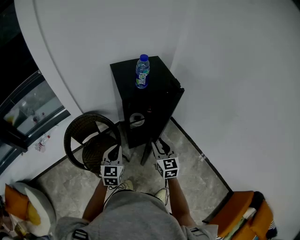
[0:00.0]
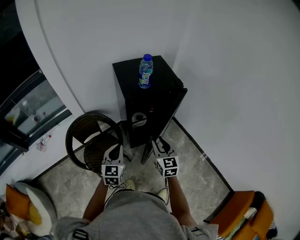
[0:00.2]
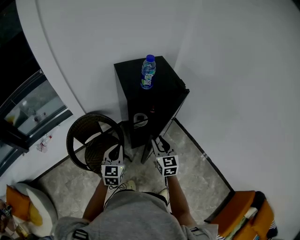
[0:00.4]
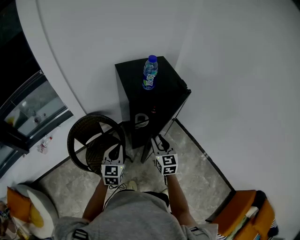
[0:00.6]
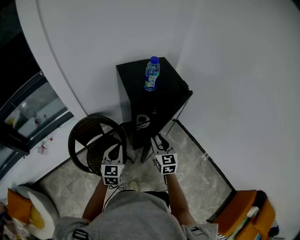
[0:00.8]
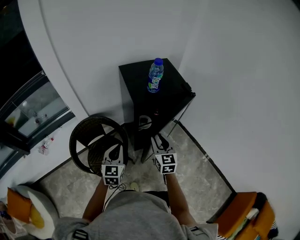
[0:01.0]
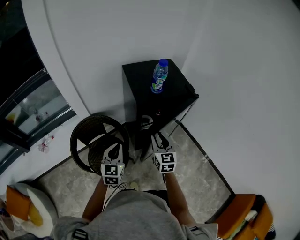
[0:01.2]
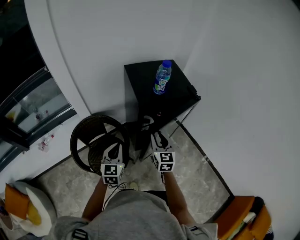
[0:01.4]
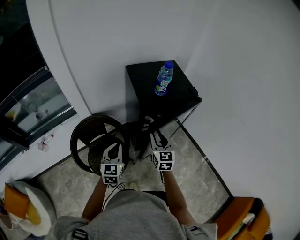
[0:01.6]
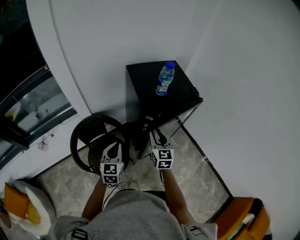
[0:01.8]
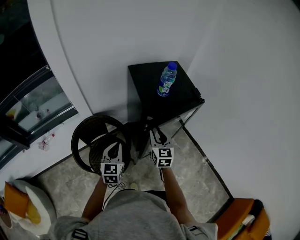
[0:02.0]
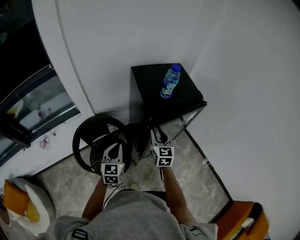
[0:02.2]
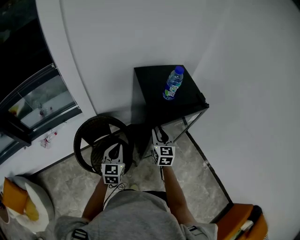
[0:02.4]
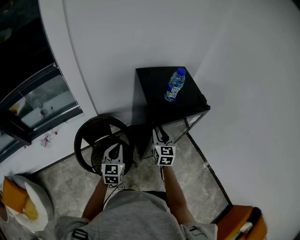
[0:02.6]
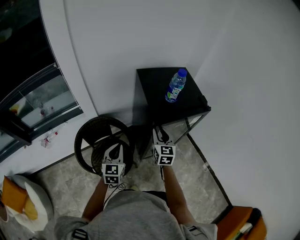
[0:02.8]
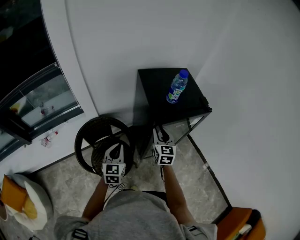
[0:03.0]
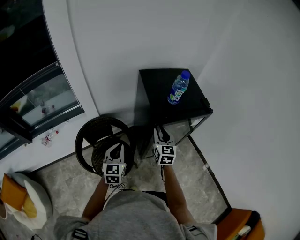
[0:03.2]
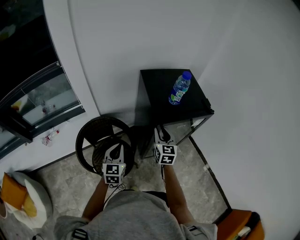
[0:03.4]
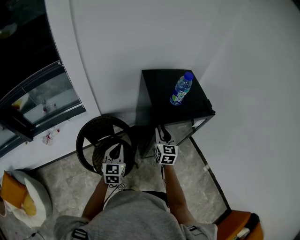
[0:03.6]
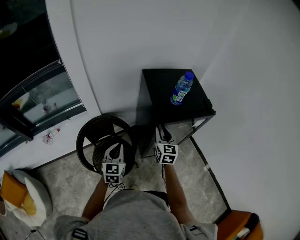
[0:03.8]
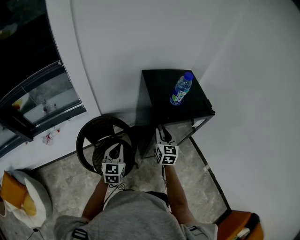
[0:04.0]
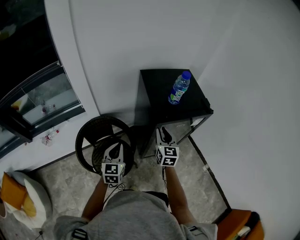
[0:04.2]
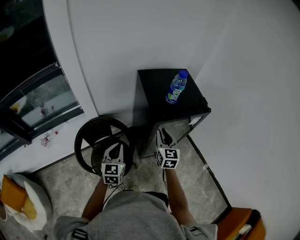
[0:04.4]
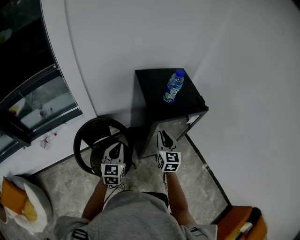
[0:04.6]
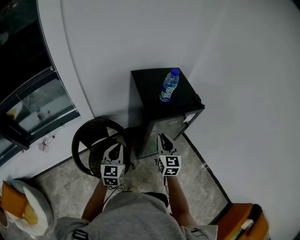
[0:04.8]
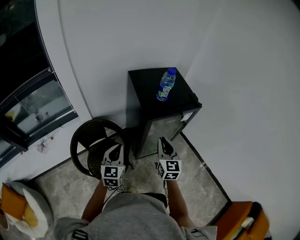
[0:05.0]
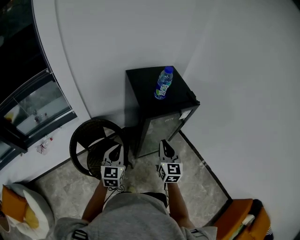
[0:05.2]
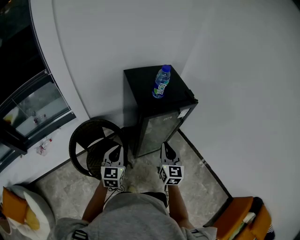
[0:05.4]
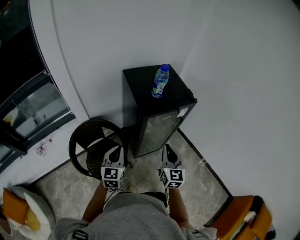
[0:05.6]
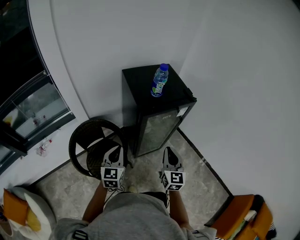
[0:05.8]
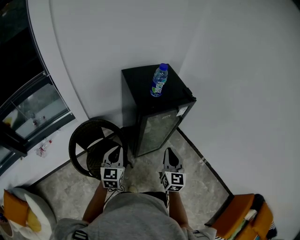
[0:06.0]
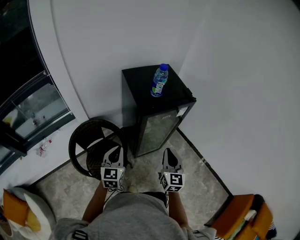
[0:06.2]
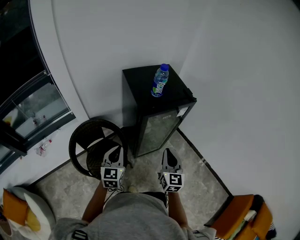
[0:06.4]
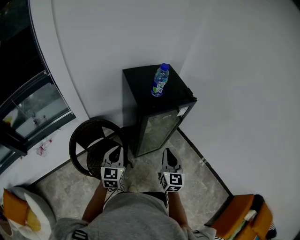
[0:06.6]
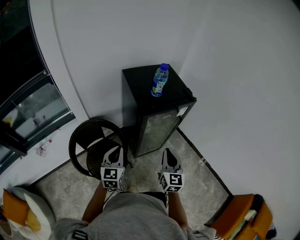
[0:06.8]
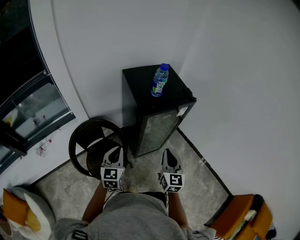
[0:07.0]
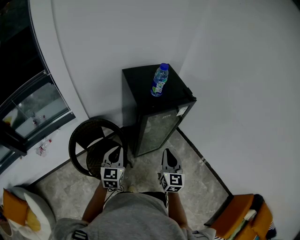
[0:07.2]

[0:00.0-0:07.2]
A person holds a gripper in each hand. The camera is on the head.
0:00.0 to 0:01.4: The grippers both shift to the left and forward by roughly 10 cm.
0:01.4 to 0:02.8: The right gripper travels forward by roughly 5 cm.
0:02.8 to 0:04.4: The grippers move only a little.
0:04.4 to 0:05.8: The right gripper heads backward and to the right, covering about 15 cm, while the left gripper shifts by about 5 cm.
0:05.8 to 0:07.2: Both grippers stay put.

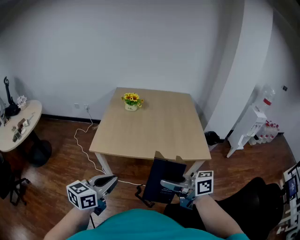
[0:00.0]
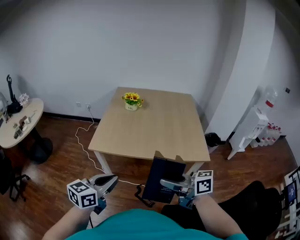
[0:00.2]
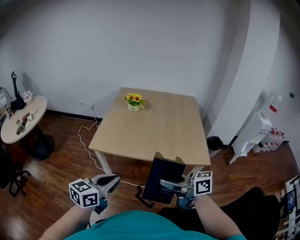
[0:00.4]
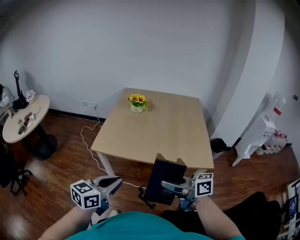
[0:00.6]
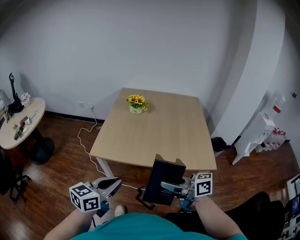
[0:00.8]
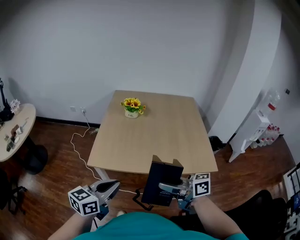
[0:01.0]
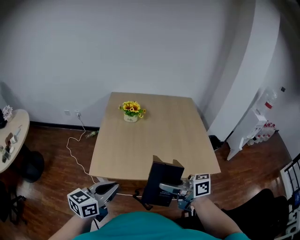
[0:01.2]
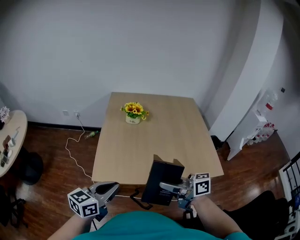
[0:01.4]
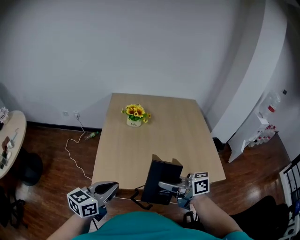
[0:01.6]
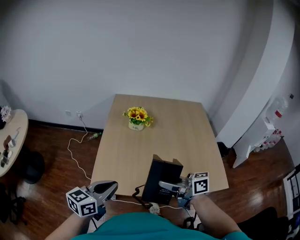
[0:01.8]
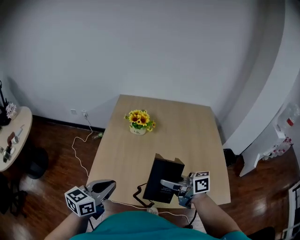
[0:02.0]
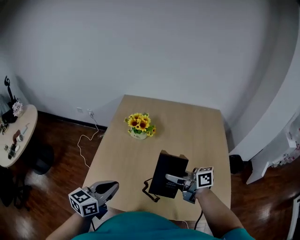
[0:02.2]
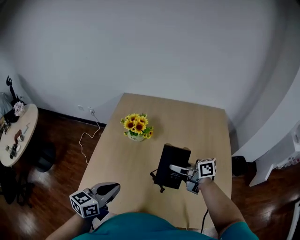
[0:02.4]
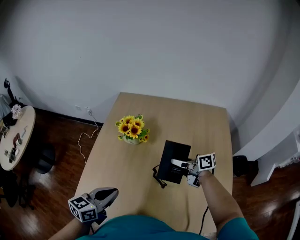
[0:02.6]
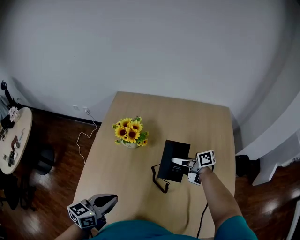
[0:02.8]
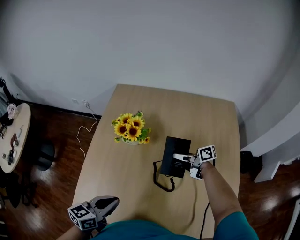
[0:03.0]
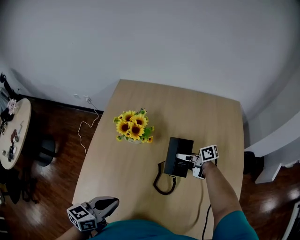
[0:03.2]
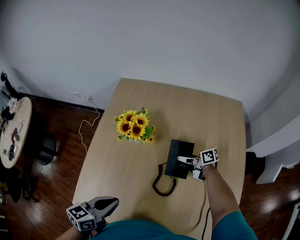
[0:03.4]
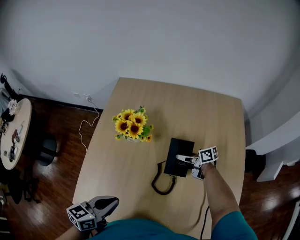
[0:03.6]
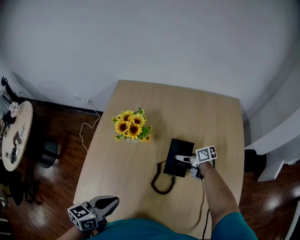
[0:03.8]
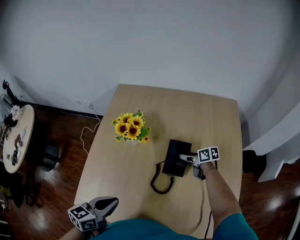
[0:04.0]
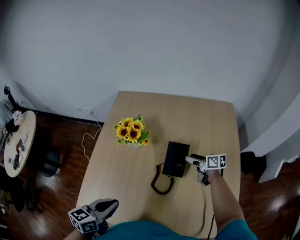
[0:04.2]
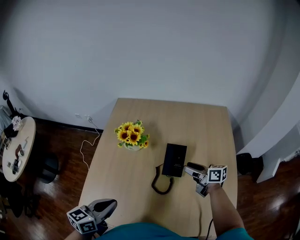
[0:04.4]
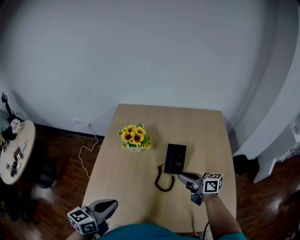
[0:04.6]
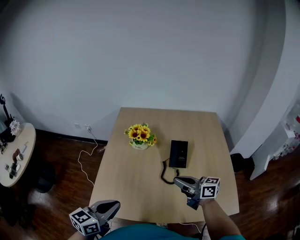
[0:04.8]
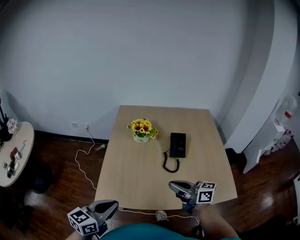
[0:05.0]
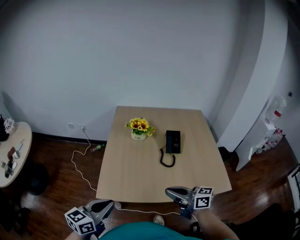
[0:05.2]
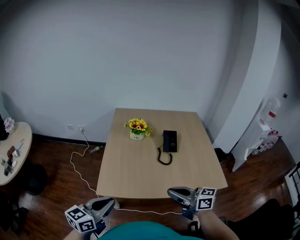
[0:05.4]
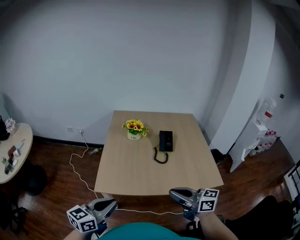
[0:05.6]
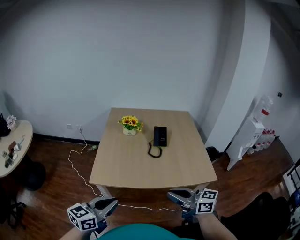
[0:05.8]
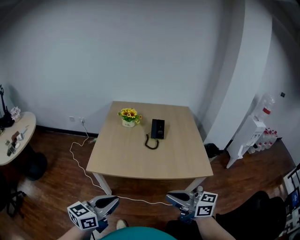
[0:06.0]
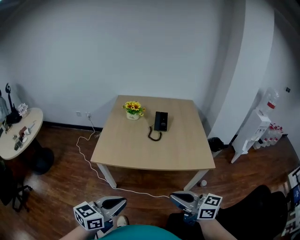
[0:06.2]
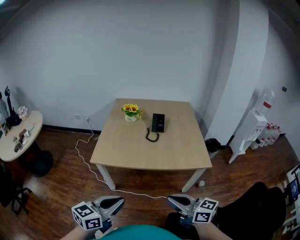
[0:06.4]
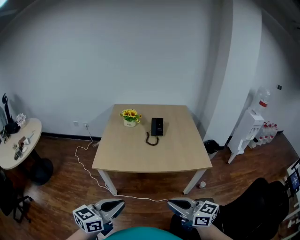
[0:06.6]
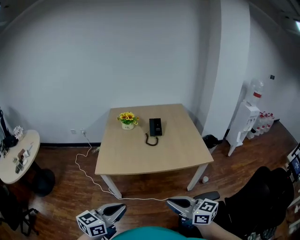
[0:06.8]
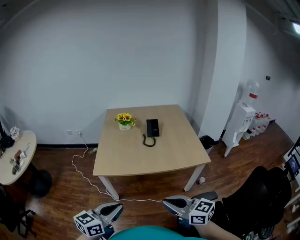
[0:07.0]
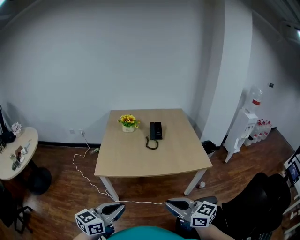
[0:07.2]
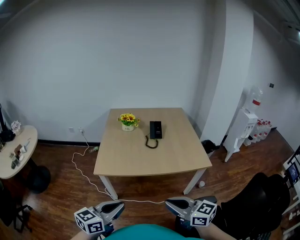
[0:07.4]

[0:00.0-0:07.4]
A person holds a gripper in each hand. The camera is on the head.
0:00.0 to 0:01.4: Both grippers travel together forward, some 20 cm.
0:01.4 to 0:03.0: The left gripper goes some 30 cm forward, to the right and downward, and turns by about 20 degrees. The right gripper heads forward, to the right and downward, covering some 60 cm, and swivels some 30 degrees.
0:03.0 to 0:04.4: The right gripper is displaced backward and to the right by roughly 10 cm, and changes its angle by some 20 degrees.
0:04.4 to 0:06.0: The right gripper heads backward, covering roughly 60 cm, changes its angle by about 30 degrees, and closes its fingers. The left gripper goes about 35 cm backward, and swivels approximately 20 degrees.
0:06.0 to 0:07.4: The left gripper travels backward by approximately 5 cm. The right gripper travels backward and to the left by roughly 10 cm.

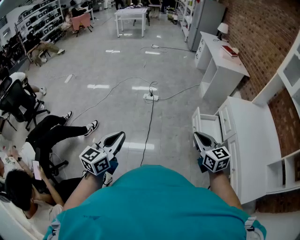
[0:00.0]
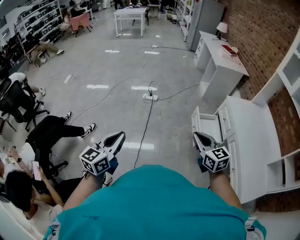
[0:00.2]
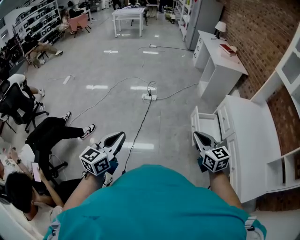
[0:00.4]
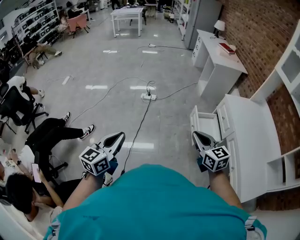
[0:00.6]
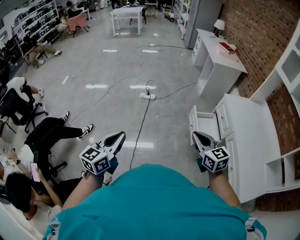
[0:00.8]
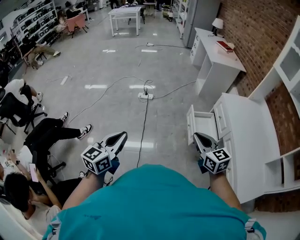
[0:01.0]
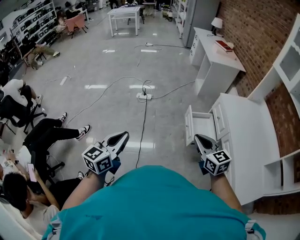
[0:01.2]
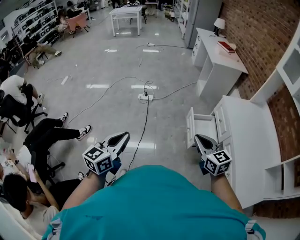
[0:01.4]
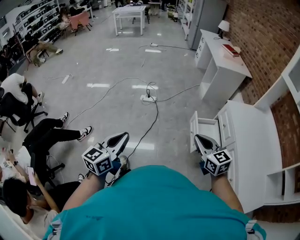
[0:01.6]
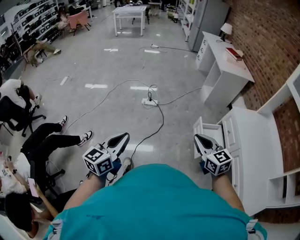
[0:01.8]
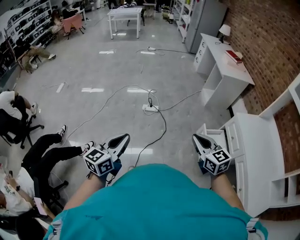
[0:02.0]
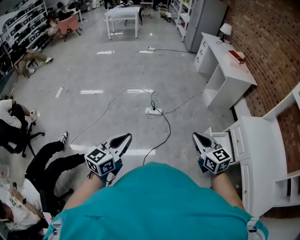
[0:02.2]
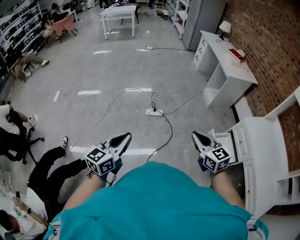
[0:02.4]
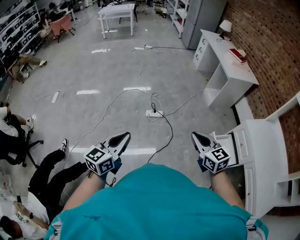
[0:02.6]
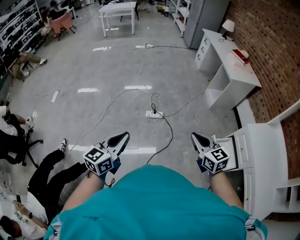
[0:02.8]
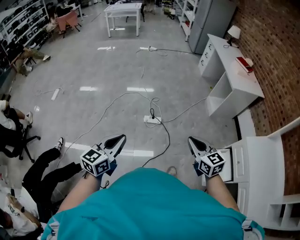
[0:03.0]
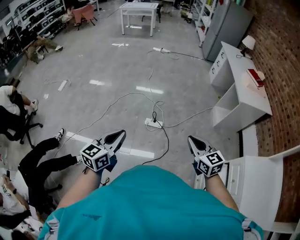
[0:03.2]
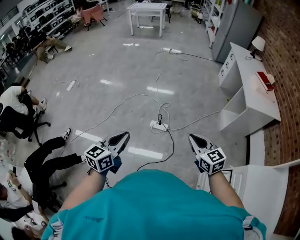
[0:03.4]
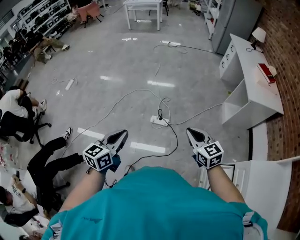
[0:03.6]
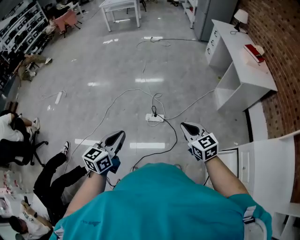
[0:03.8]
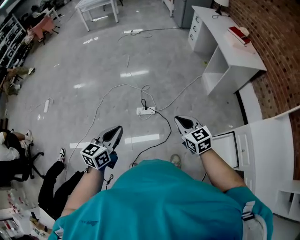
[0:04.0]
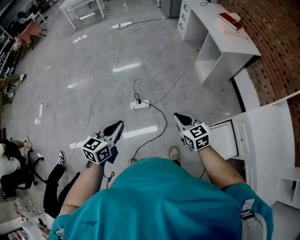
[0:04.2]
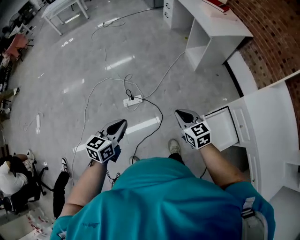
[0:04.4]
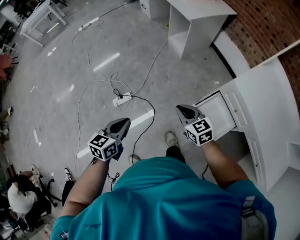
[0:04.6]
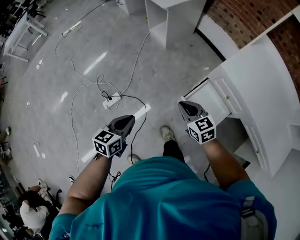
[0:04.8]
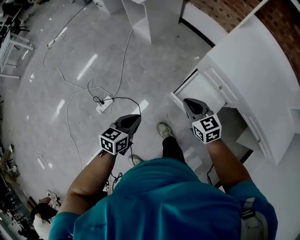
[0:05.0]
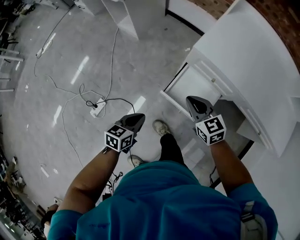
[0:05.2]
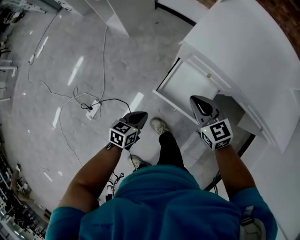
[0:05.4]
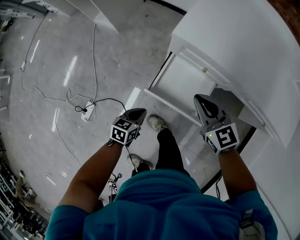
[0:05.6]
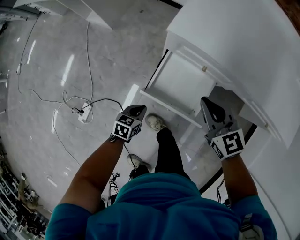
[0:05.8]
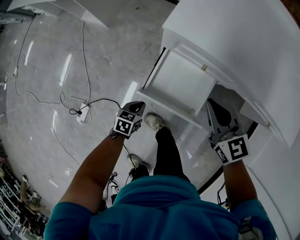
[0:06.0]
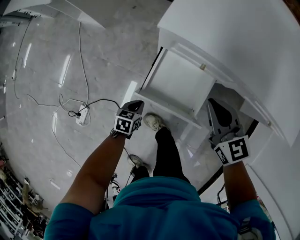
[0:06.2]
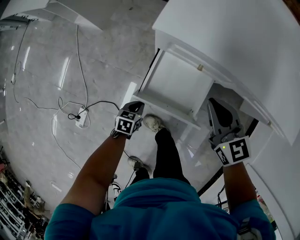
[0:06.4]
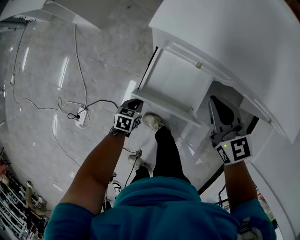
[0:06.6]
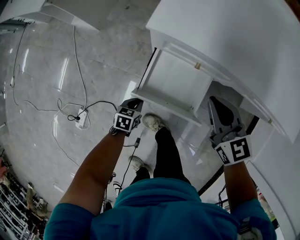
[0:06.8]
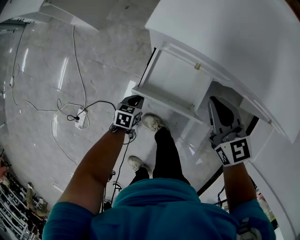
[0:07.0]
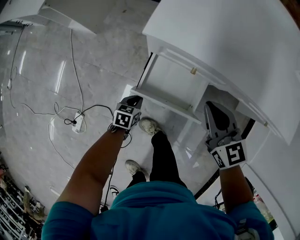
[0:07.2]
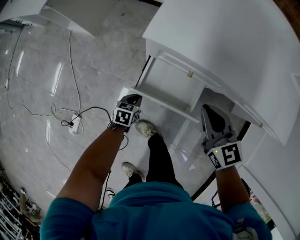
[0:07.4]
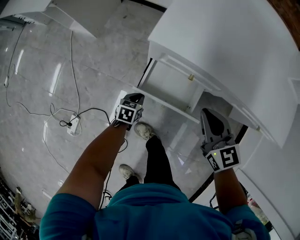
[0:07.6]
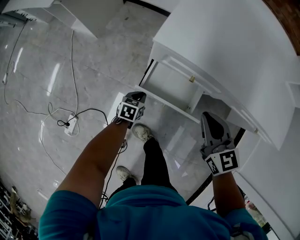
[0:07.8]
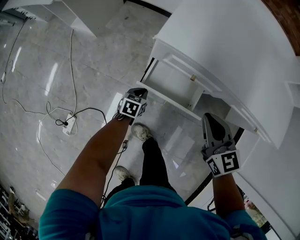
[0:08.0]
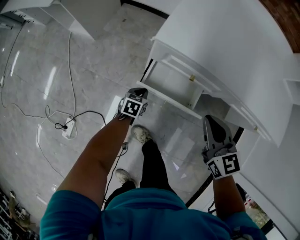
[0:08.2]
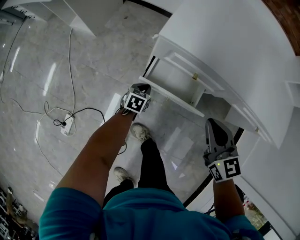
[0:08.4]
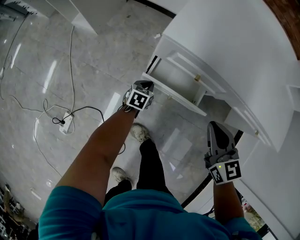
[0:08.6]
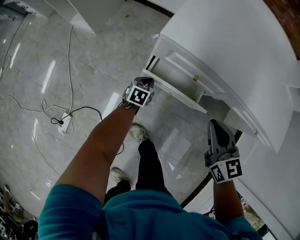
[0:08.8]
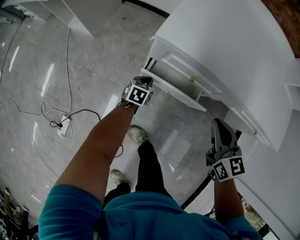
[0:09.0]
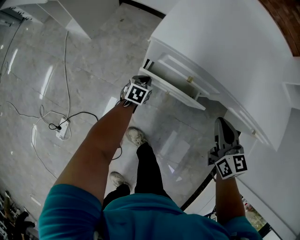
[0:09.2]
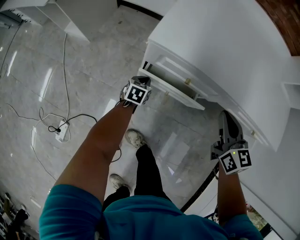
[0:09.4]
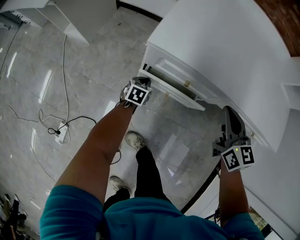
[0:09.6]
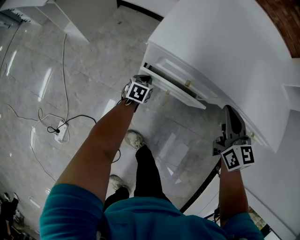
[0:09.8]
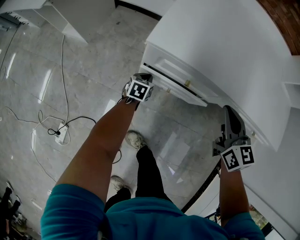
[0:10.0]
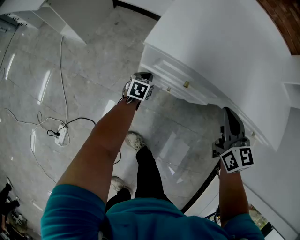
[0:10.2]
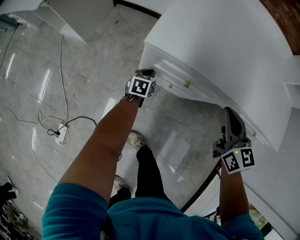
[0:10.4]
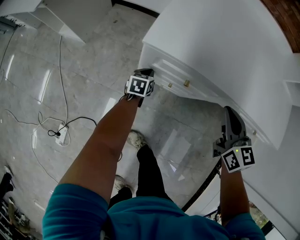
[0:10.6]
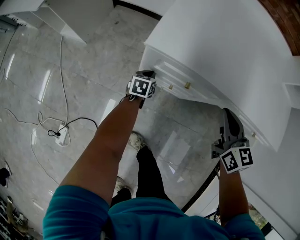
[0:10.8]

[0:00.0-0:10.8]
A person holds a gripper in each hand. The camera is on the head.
0:00.0 to 0:01.6: The left gripper heads forward and to the right, covering about 10 cm. Meanwhile the right gripper moves forward, roughly 5 cm.
0:01.6 to 0:03.0: The pair of grippers is taken forward and to the left, approximately 40 cm.
0:03.0 to 0:04.6: The left gripper ends up roughly 40 cm from where it was, and rotates some 30 degrees; the right gripper shifts by some 30 cm, and swivels approximately 20 degrees.
0:04.6 to 0:06.2: The right gripper shifts by approximately 40 cm, and changes its angle by approximately 40 degrees. The left gripper moves downward, some 40 cm, and swivels about 50 degrees.
0:06.2 to 0:07.8: The left gripper travels forward by roughly 10 cm.
0:07.8 to 0:09.2: The right gripper goes some 10 cm to the right; the left gripper travels forward by about 10 cm.
0:09.2 to 0:10.8: The grippers both shift forward by approximately 5 cm.
